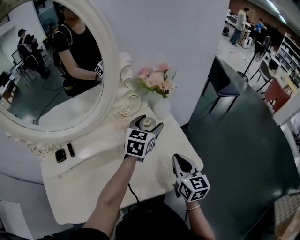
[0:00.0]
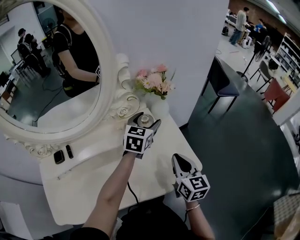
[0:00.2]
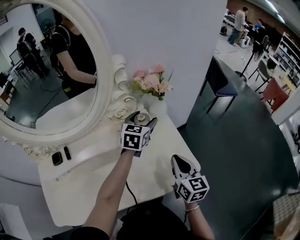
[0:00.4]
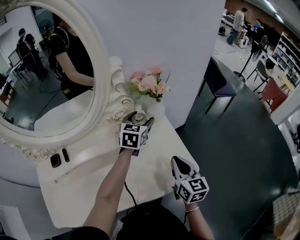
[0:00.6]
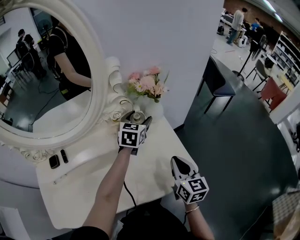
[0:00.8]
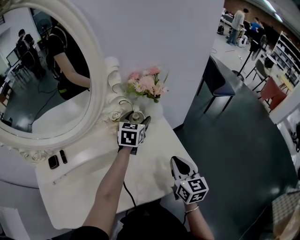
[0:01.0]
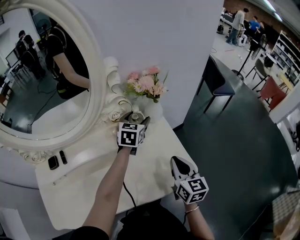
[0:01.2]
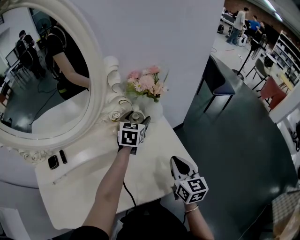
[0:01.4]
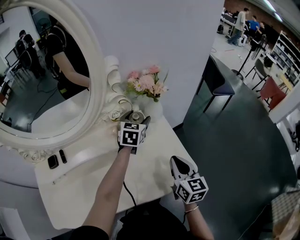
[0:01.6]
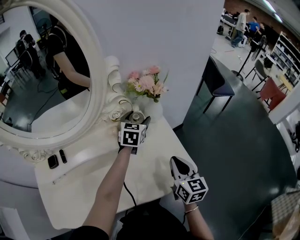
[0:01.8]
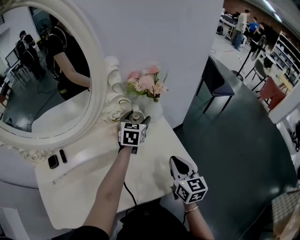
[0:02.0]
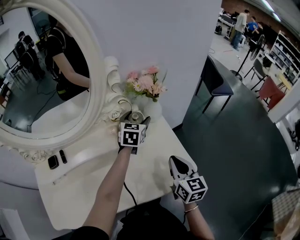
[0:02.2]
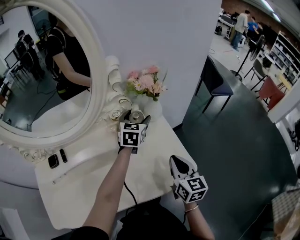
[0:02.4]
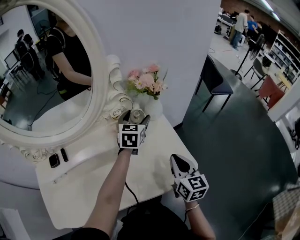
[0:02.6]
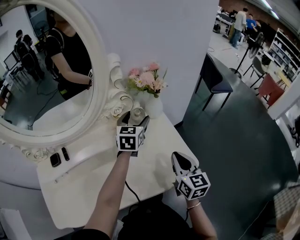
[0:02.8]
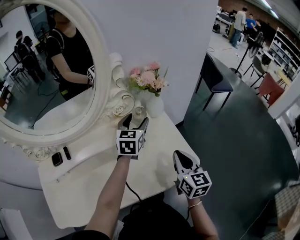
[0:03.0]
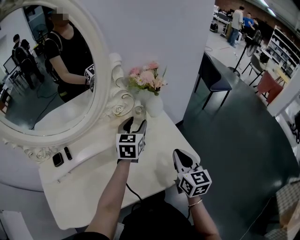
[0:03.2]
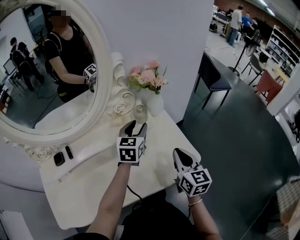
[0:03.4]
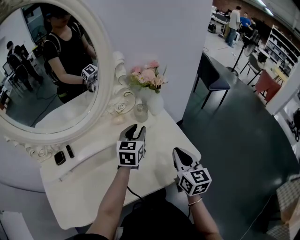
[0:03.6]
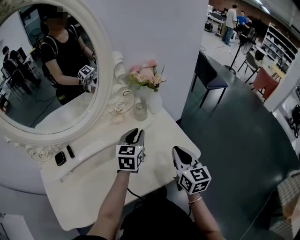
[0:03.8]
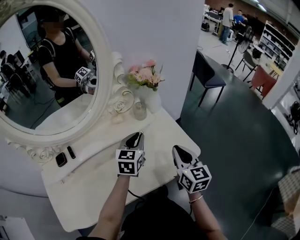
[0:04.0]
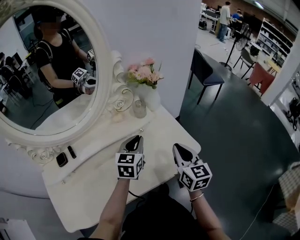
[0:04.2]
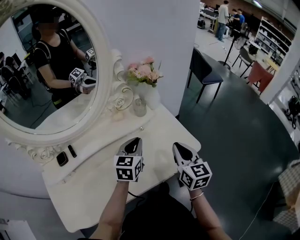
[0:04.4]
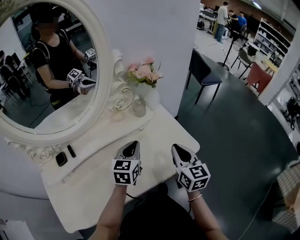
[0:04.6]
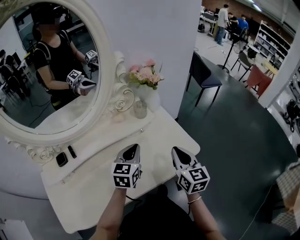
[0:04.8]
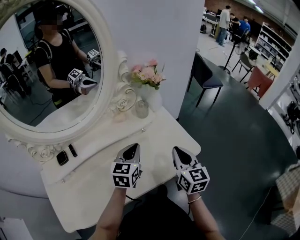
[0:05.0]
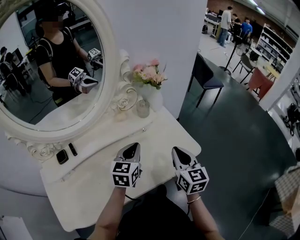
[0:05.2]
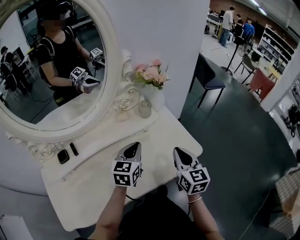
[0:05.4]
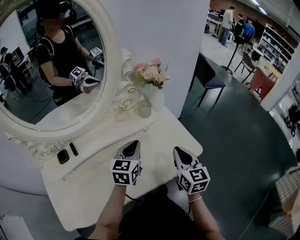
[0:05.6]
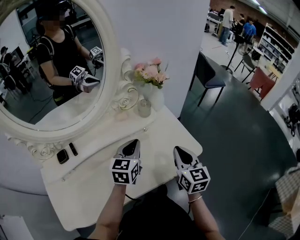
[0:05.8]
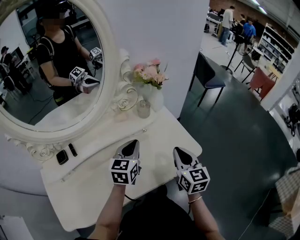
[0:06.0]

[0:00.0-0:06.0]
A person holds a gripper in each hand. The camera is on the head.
0:00.0 to 0:01.6: The left gripper goes approximately 5 cm forward.
0:01.6 to 0:03.0: The left gripper travels backward by approximately 5 cm.
0:03.0 to 0:04.4: The left gripper travels backward by about 15 cm, and closes up.
0:04.4 to 0:06.0: The grippers make only small movements.

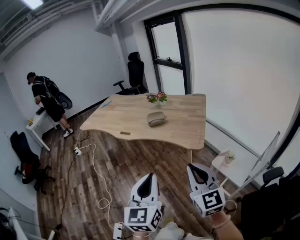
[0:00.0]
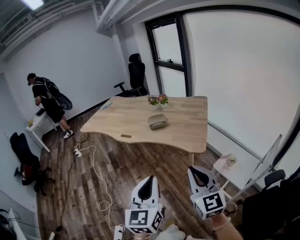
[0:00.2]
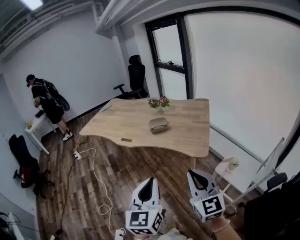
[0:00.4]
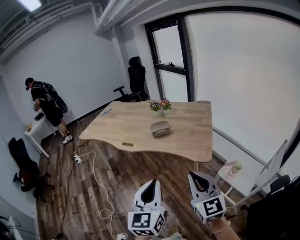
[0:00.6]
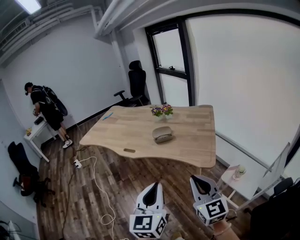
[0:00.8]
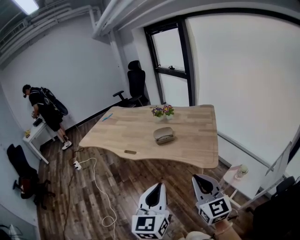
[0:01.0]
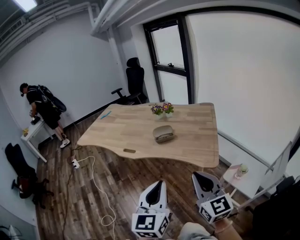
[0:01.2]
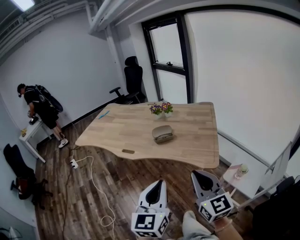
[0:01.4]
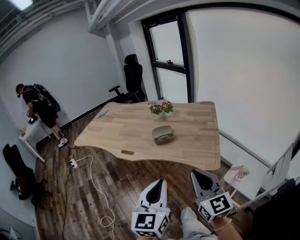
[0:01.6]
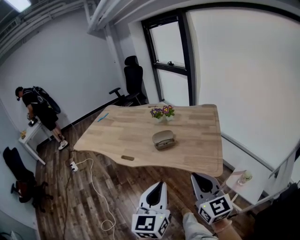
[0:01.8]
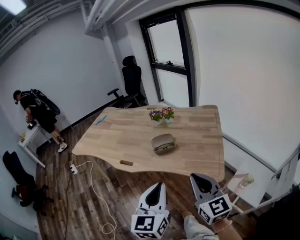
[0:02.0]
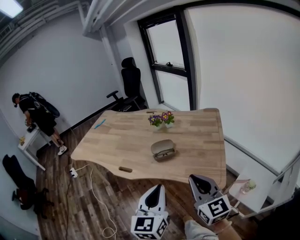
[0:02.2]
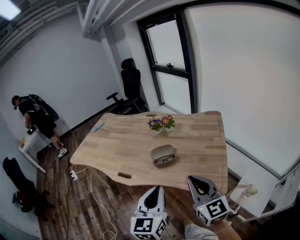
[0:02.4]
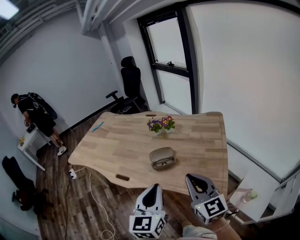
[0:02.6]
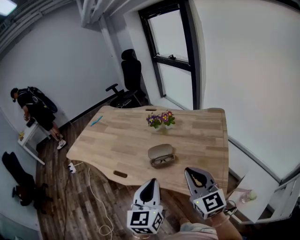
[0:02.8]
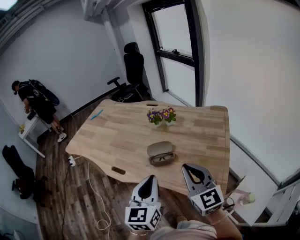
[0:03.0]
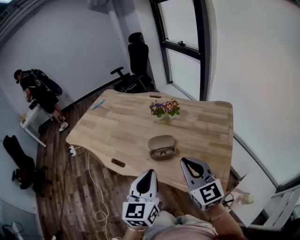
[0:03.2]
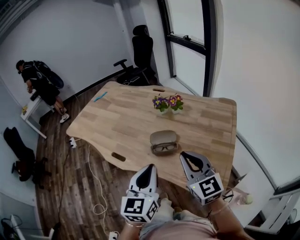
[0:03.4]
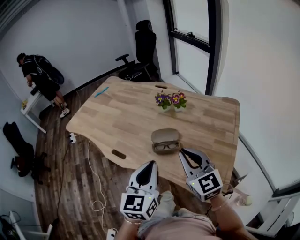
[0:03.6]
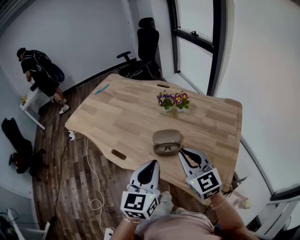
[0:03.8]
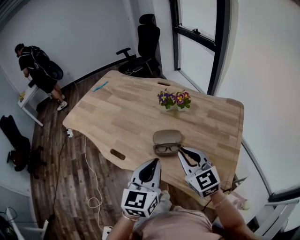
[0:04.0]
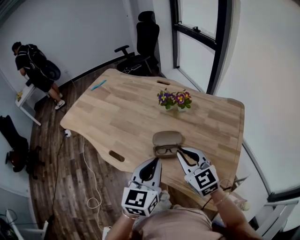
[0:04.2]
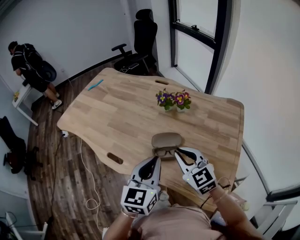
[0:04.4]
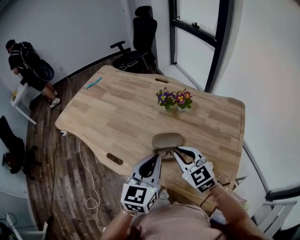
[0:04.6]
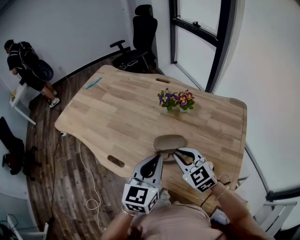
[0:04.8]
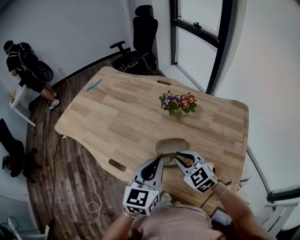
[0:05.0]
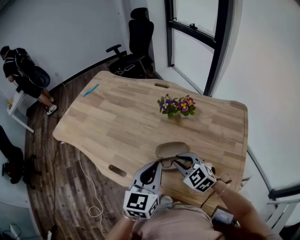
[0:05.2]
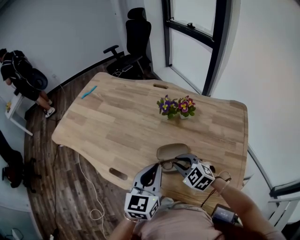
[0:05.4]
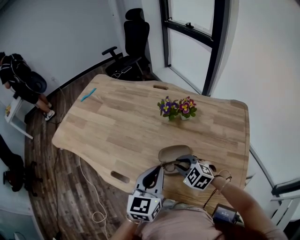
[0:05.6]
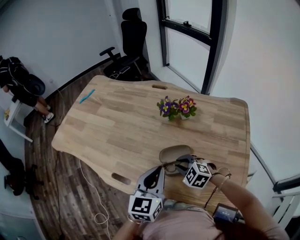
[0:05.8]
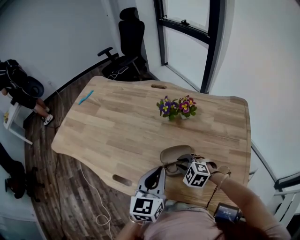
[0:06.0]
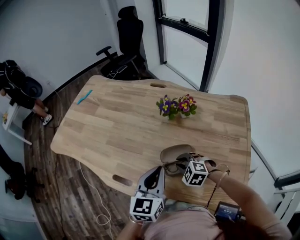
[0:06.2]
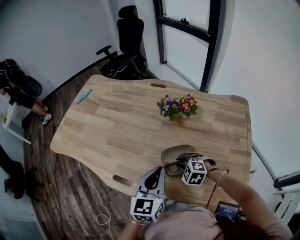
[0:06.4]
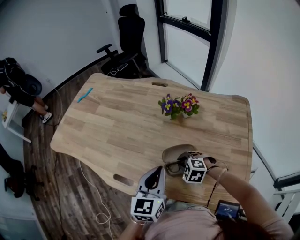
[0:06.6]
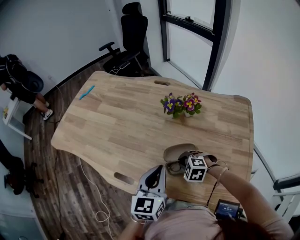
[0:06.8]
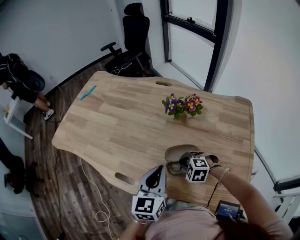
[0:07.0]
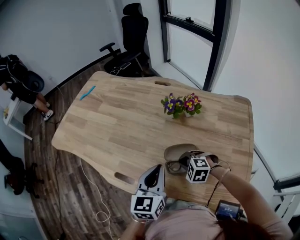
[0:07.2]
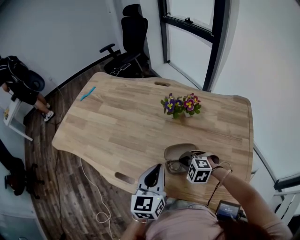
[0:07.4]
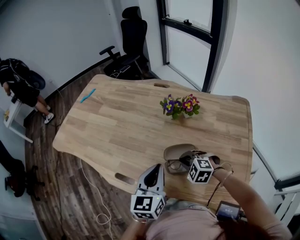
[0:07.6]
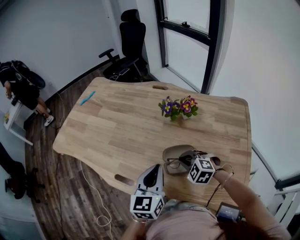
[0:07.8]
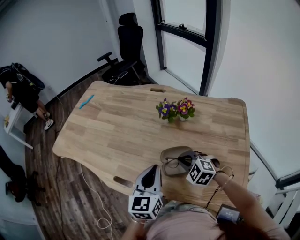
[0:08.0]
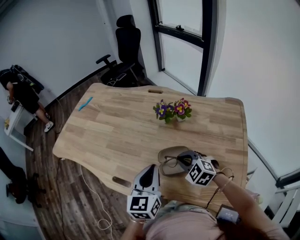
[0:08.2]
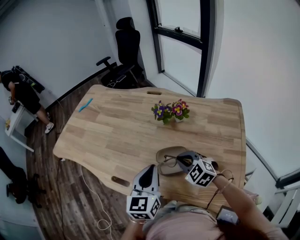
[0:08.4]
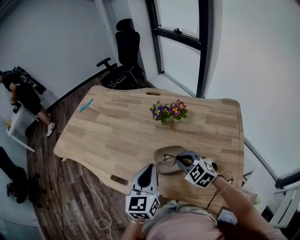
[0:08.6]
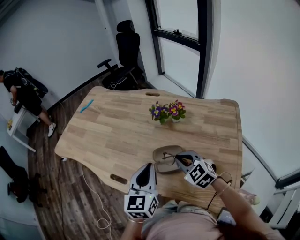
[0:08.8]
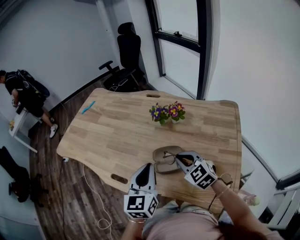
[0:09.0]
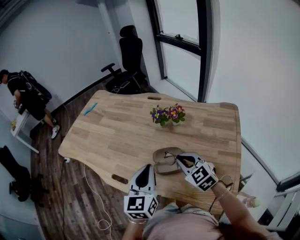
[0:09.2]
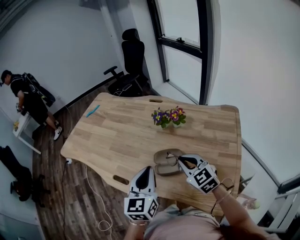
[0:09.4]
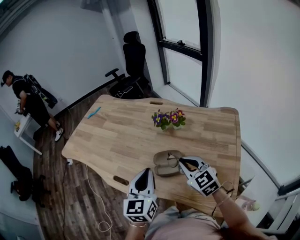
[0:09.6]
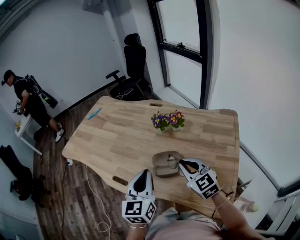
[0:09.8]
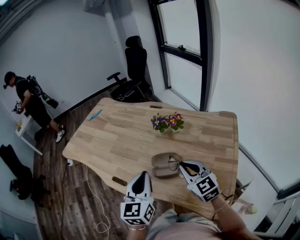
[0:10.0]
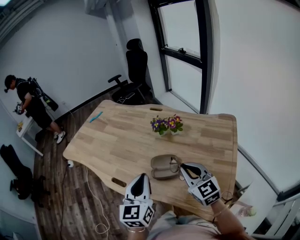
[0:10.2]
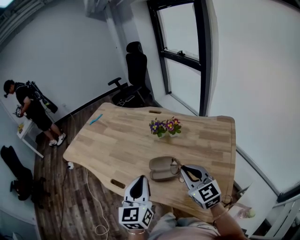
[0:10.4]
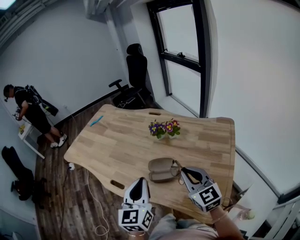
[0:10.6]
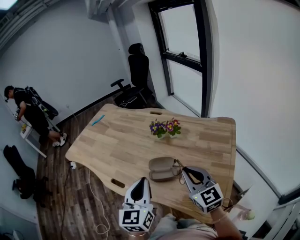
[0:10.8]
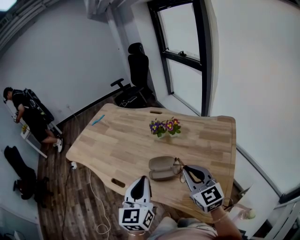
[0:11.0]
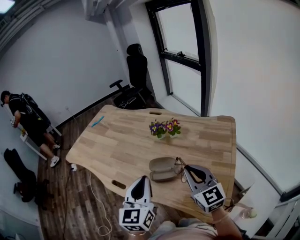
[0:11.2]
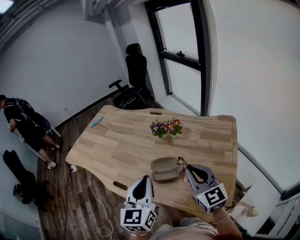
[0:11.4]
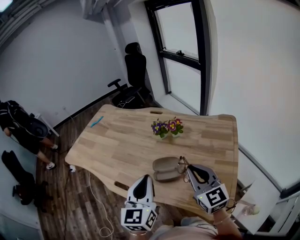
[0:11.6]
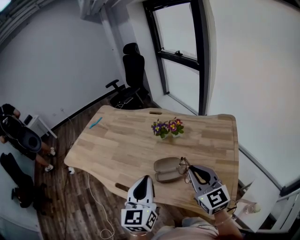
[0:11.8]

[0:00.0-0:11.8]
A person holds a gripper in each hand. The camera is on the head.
0:00.0 to 0:01.4: The two grippers go about 15 cm forward.
0:01.4 to 0:03.0: Both grippers travel together forward, roughly 30 cm.
0:03.0 to 0:04.4: The two grippers go roughly 15 cm forward and downward. The right gripper rotates approximately 30 degrees.
0:04.4 to 0:06.0: The right gripper shifts some 20 cm downward, and tips its fingers downward by about 30 degrees. Meanwhile the left gripper is displaced forward and downward by approximately 10 cm.
0:06.0 to 0:07.4: The grippers move only a little.
0:07.4 to 0:08.8: The left gripper heads upward, covering approximately 5 cm. Meanwhile the right gripper travels upward by roughly 10 cm, and changes its angle by roughly 30 degrees.
0:08.8 to 0:10.4: The right gripper shifts approximately 15 cm upward, backward and to the right, and swivels approximately 30 degrees. Meanwhile the left gripper heads backward and upward, covering roughly 10 cm.
0:10.4 to 0:11.8: The grippers make only small movements.

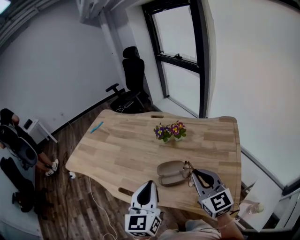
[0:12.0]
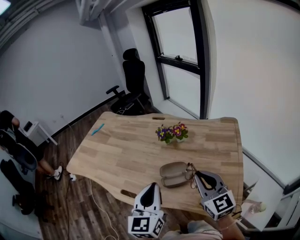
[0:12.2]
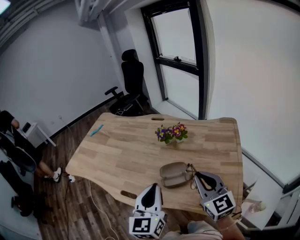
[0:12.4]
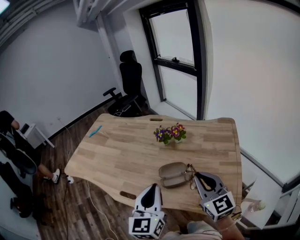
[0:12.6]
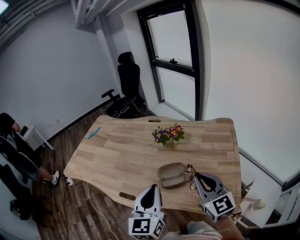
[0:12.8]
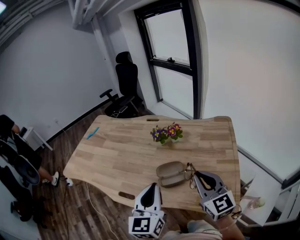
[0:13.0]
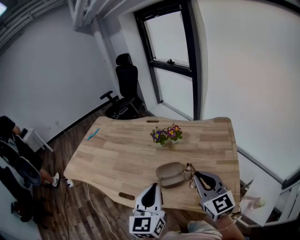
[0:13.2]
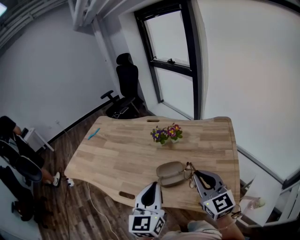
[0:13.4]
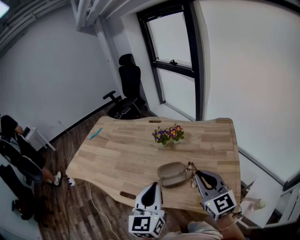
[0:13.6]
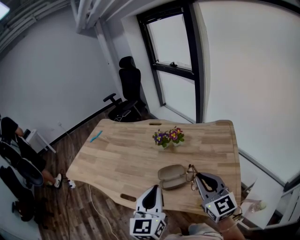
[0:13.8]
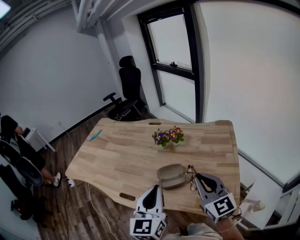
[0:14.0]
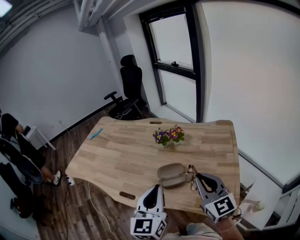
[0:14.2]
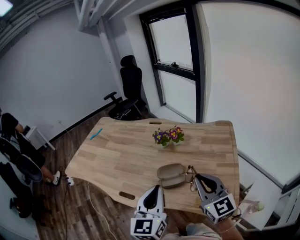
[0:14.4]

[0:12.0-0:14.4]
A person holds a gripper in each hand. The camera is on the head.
0:12.0 to 0:14.4: The grippers make only small movements.

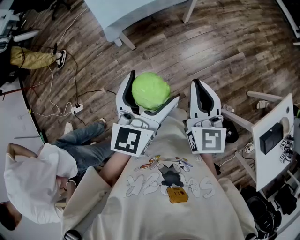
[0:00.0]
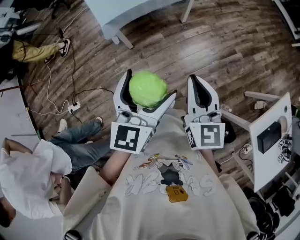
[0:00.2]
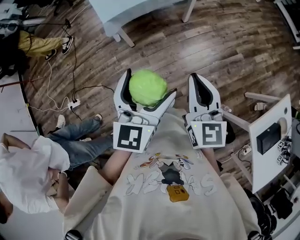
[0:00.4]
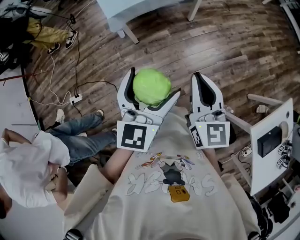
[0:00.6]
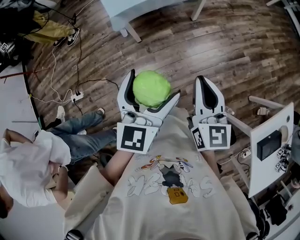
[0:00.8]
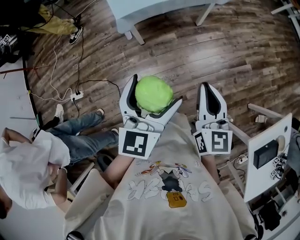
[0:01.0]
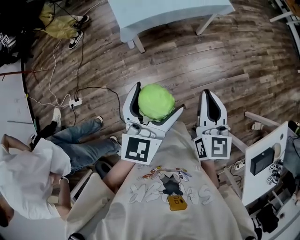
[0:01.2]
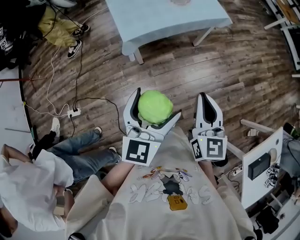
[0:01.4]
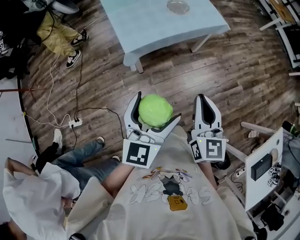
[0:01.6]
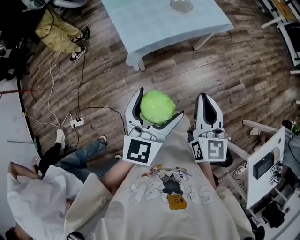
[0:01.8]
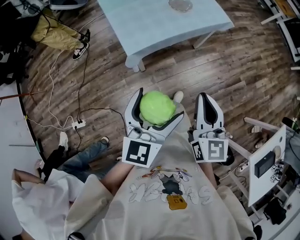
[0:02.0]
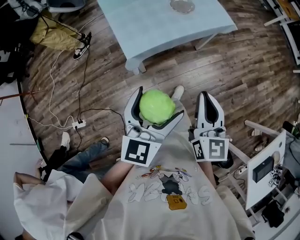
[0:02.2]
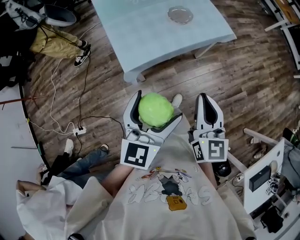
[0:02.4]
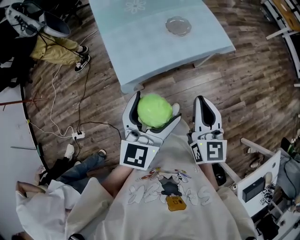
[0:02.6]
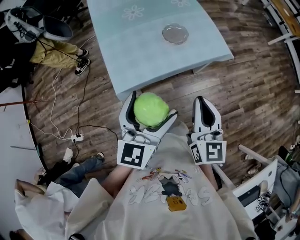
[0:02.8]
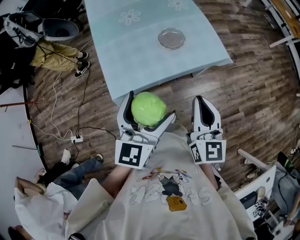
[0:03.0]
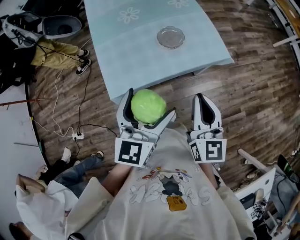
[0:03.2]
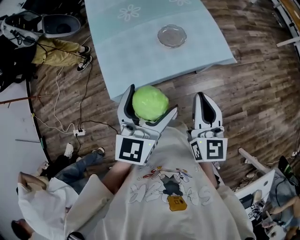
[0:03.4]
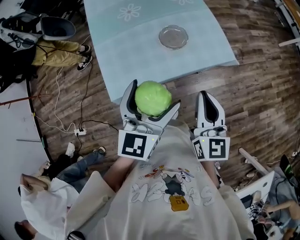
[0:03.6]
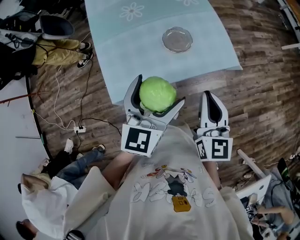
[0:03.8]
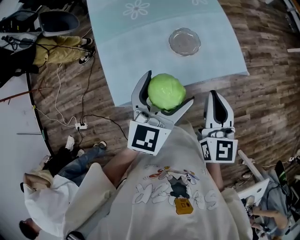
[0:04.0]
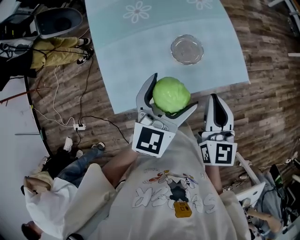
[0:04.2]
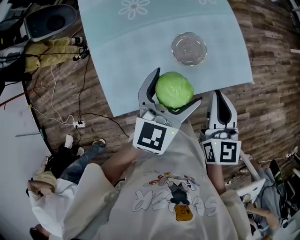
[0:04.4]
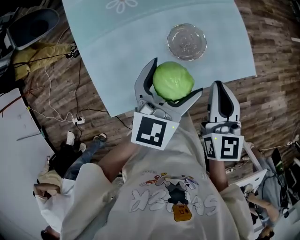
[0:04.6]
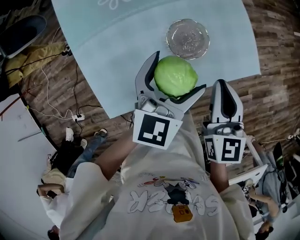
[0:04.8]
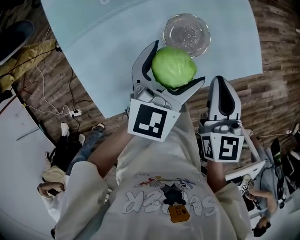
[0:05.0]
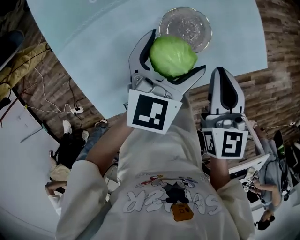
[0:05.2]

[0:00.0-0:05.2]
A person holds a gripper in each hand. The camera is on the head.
0:00.0 to 0:01.8: The right gripper heads forward and to the left, covering approximately 20 cm. The left gripper travels to the left and forward by roughly 15 cm.
0:01.8 to 0:03.4: The grippers both shift forward by approximately 35 cm.
0:03.4 to 0:05.2: The grippers both shift forward and downward by some 35 cm. The right gripper changes its angle by some 20 degrees. Meanwhile the left gripper rotates approximately 20 degrees.
